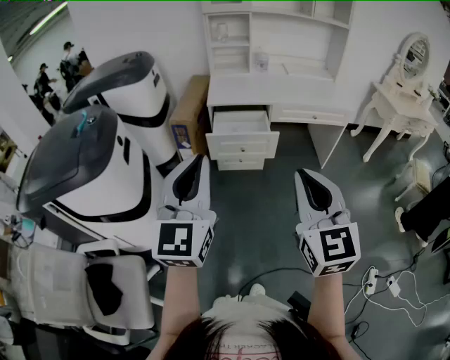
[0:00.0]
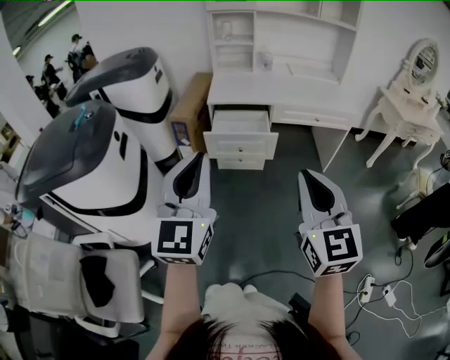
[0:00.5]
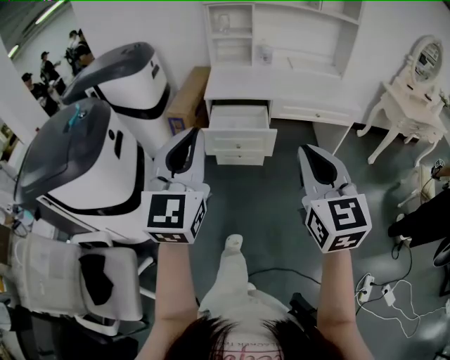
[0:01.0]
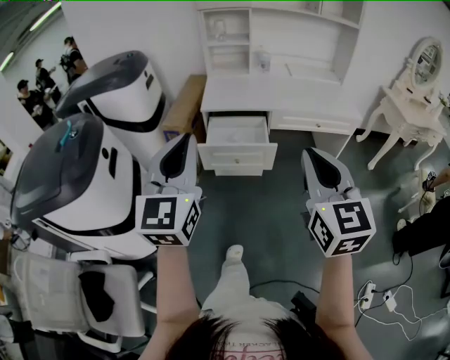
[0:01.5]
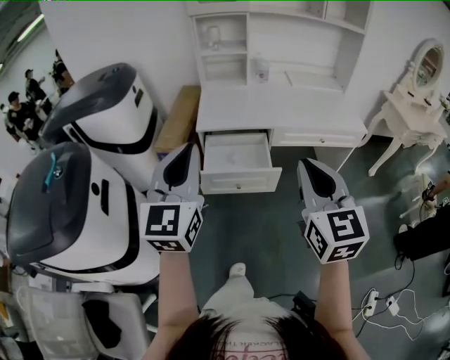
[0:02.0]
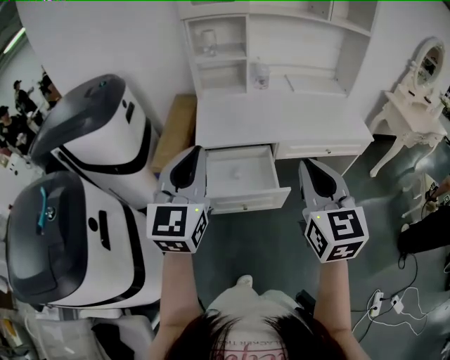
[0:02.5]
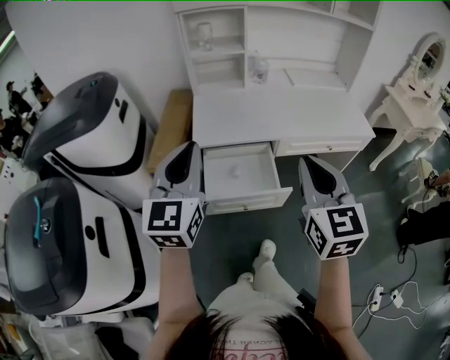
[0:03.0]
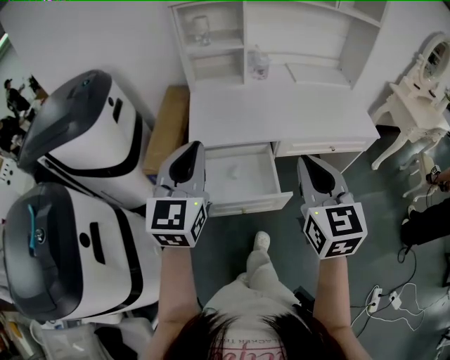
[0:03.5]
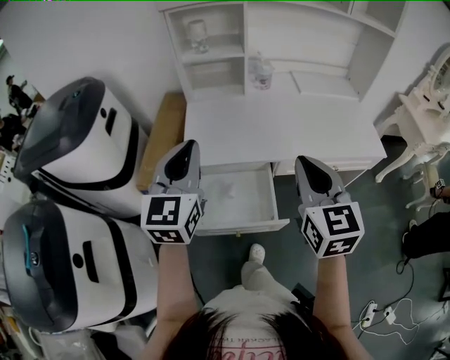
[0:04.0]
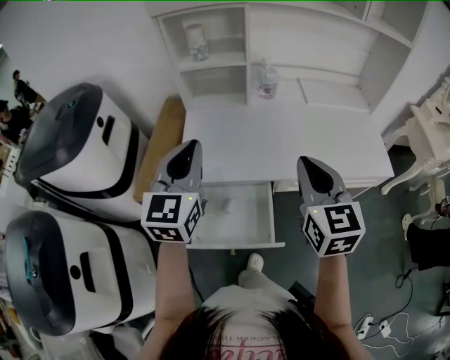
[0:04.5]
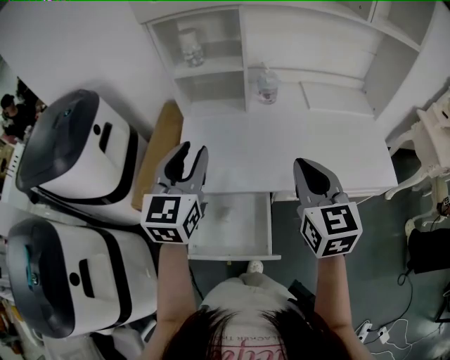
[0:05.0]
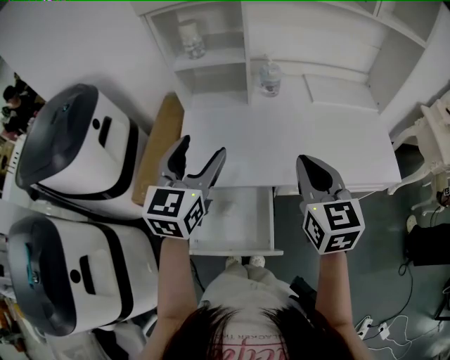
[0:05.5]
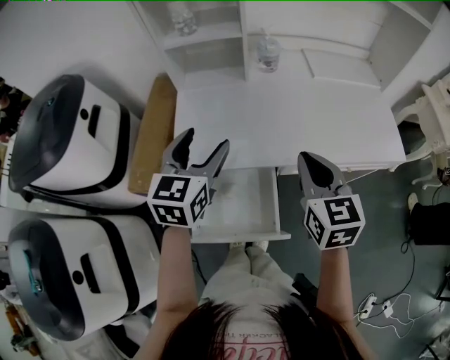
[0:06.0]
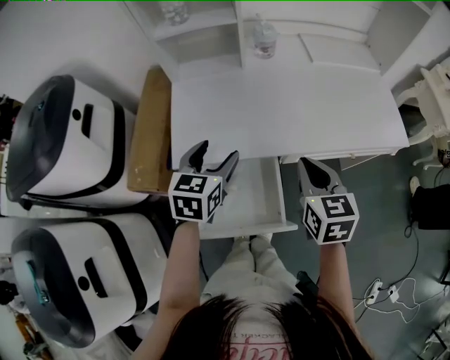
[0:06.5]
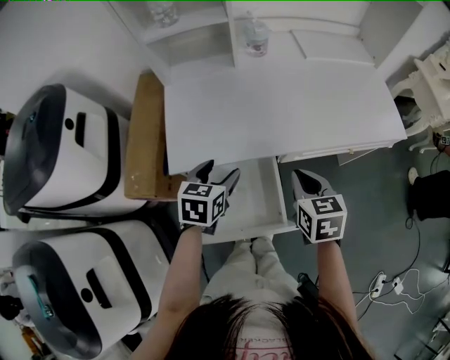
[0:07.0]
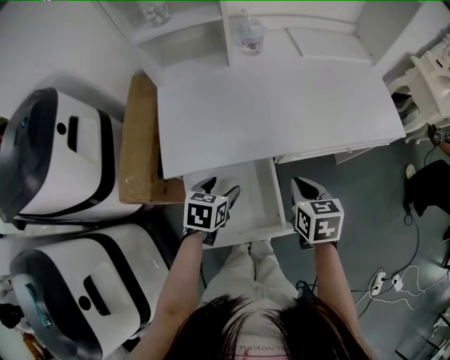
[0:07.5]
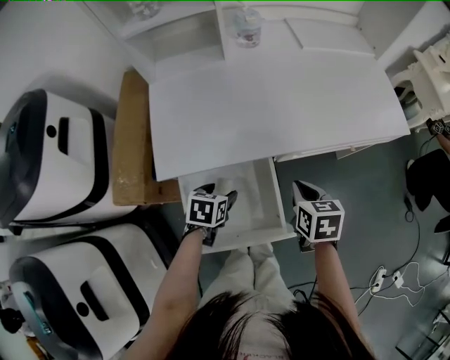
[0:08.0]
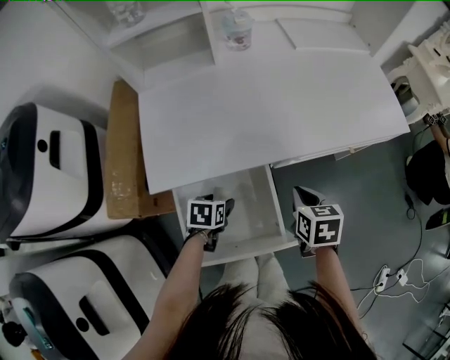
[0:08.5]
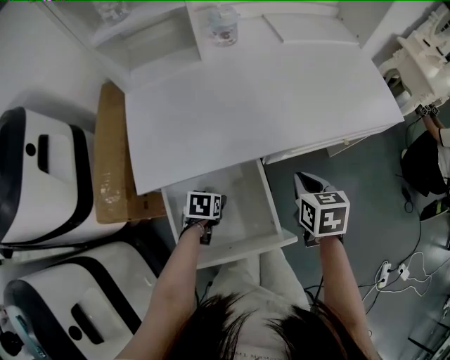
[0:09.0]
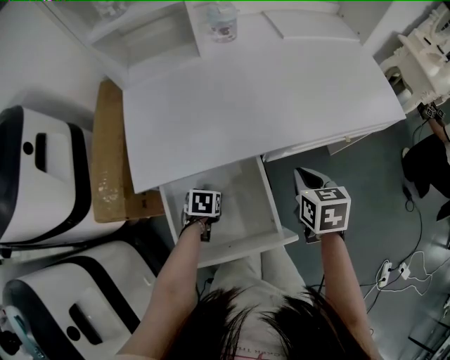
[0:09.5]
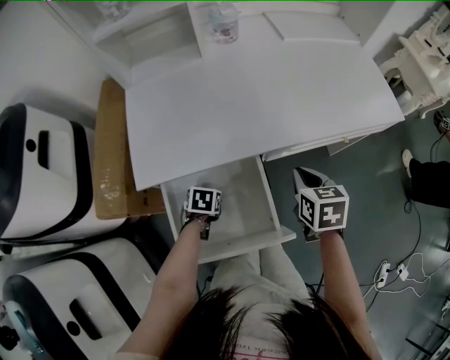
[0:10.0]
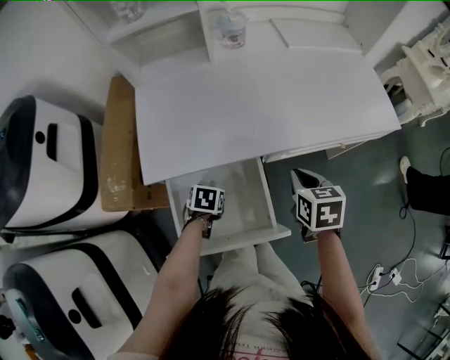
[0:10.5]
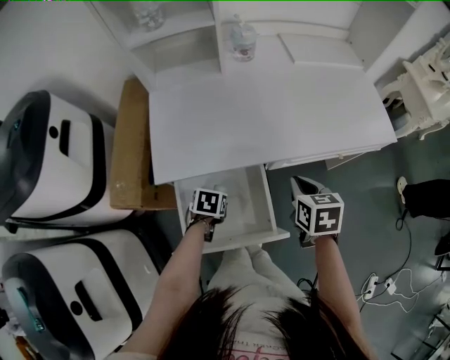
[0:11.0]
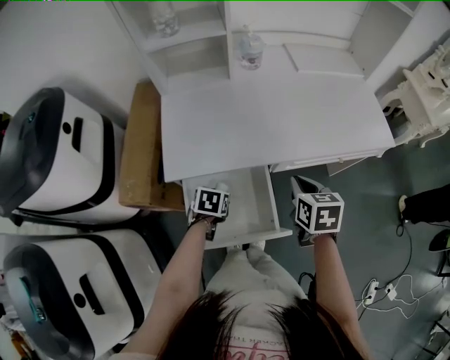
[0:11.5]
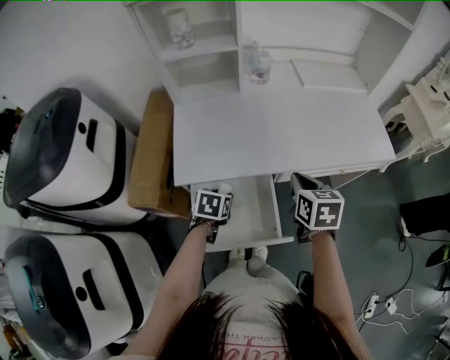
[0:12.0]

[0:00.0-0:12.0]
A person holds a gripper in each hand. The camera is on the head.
0:00.0 to 0:02.0: Both grippers move forward, about 25 cm.
0:02.0 to 0:04.0: Both grippers move forward, approximately 30 cm.
0:04.0 to 0:06.0: The right gripper moves forward and downward, some 15 cm, while the left gripper is displaced forward, downward and to the right by some 15 cm, and opens.
0:06.0 to 0:08.0: Both grippers move downward, roughly 25 cm. The left gripper tips its fingers downward by approximately 40 degrees. Meanwhile the right gripper turns by approximately 30 degrees.
0:08.0 to 0:10.0: The left gripper is displaced downward by some 10 cm, and closes up. The right gripper changes place by some 5 cm.
0:10.0 to 0:12.0: The right gripper shifts some 15 cm upward and to the left. Meanwhile the left gripper moves upward, about 20 cm.

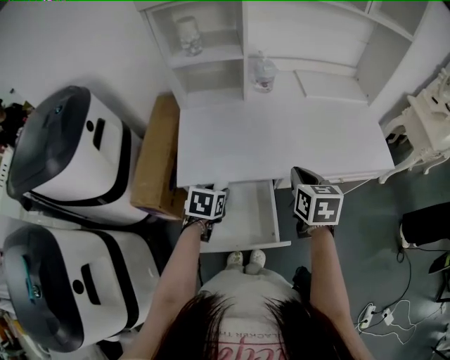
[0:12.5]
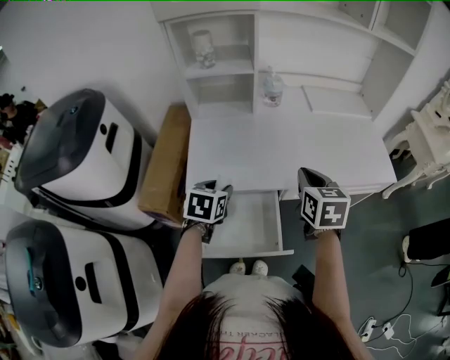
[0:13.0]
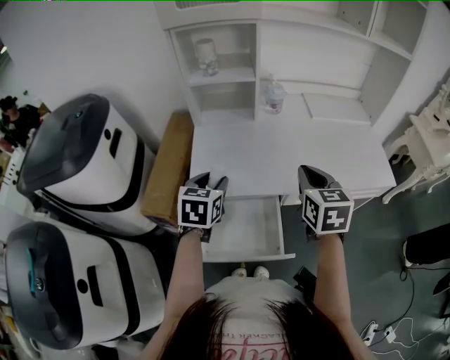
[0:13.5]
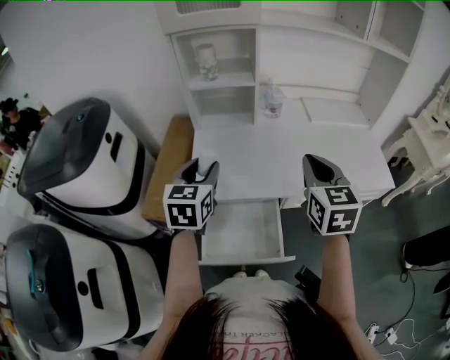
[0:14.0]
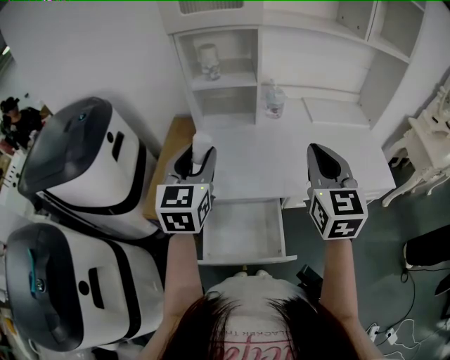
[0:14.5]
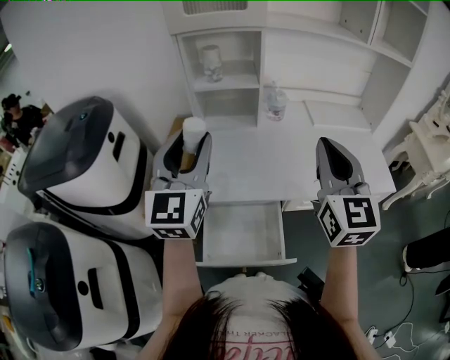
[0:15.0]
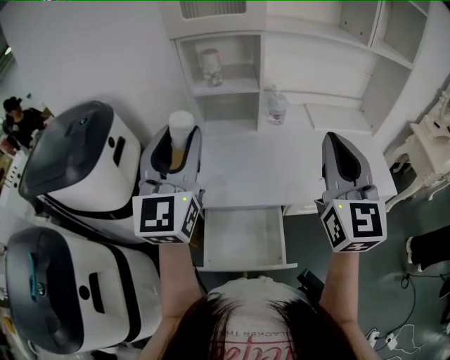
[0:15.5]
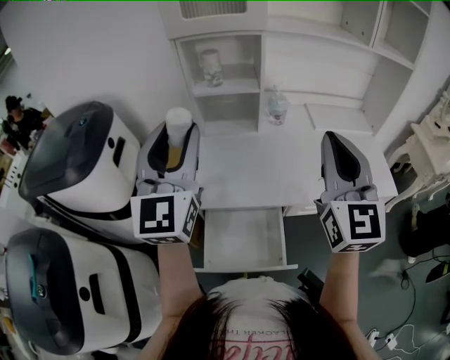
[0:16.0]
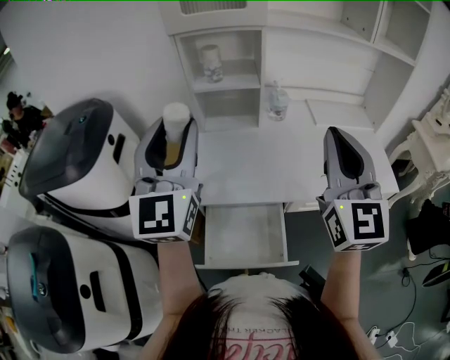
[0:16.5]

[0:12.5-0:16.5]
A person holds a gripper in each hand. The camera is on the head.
0:12.5 to 0:14.5: The two grippers go about 25 cm upward. The left gripper tilts its fingers some 50 degrees upward, while the right gripper rotates approximately 40 degrees.
0:14.5 to 0:16.5: The two grippers go approximately 10 cm upward. The left gripper changes its angle by some 30 degrees.

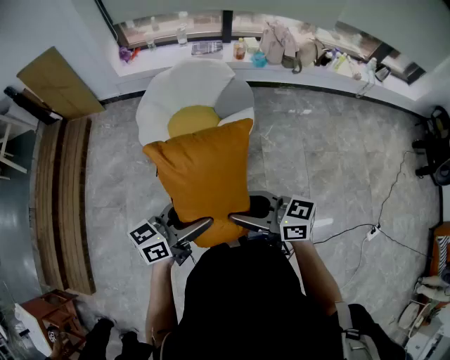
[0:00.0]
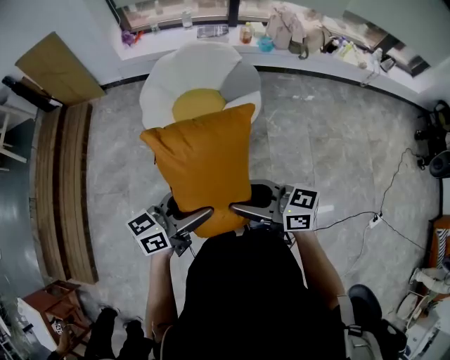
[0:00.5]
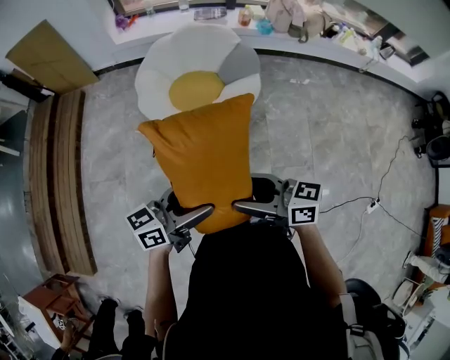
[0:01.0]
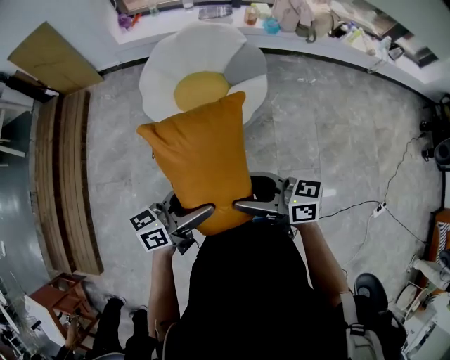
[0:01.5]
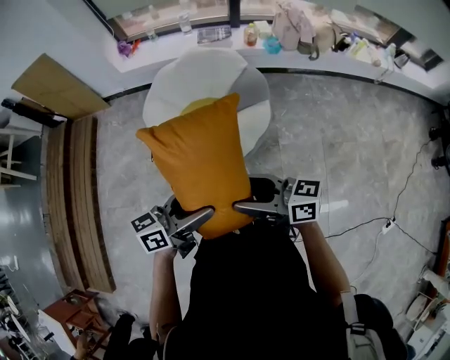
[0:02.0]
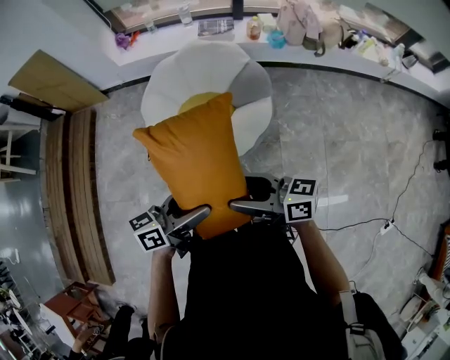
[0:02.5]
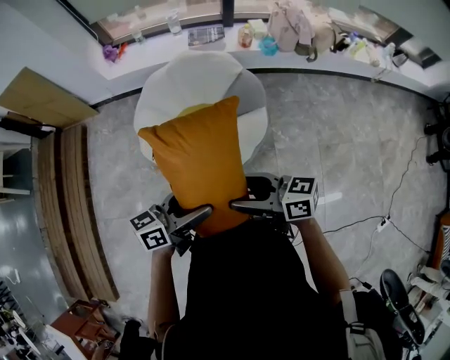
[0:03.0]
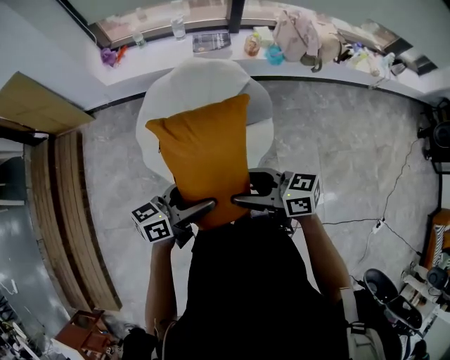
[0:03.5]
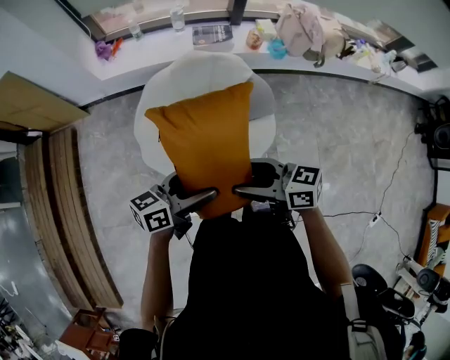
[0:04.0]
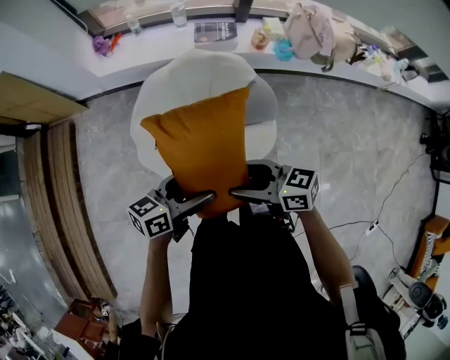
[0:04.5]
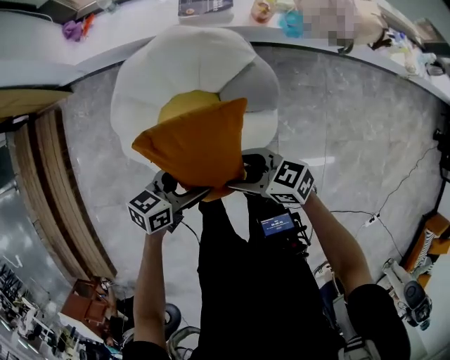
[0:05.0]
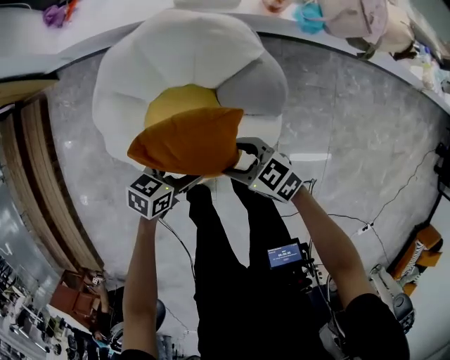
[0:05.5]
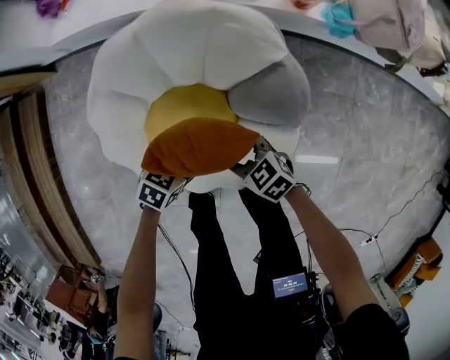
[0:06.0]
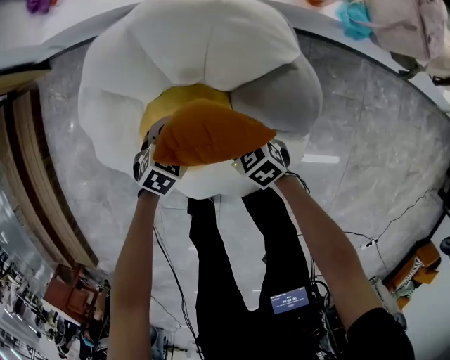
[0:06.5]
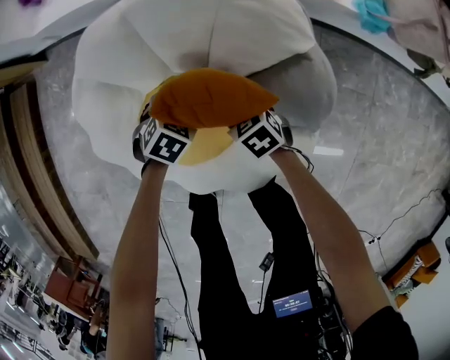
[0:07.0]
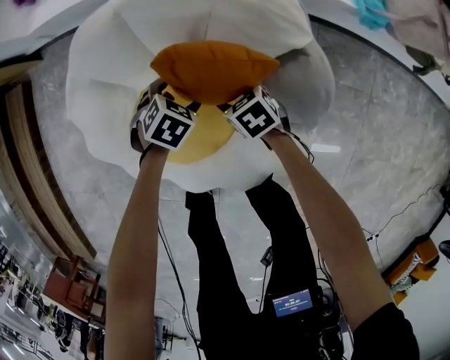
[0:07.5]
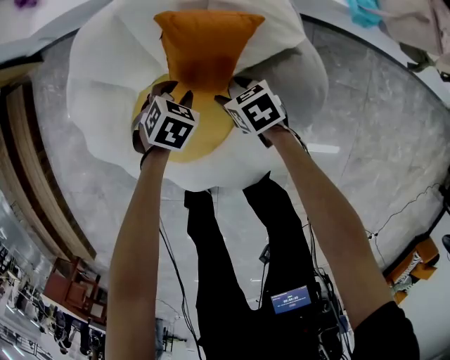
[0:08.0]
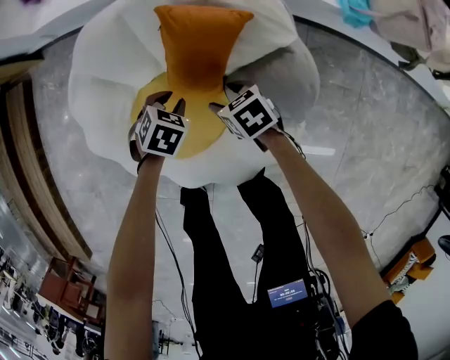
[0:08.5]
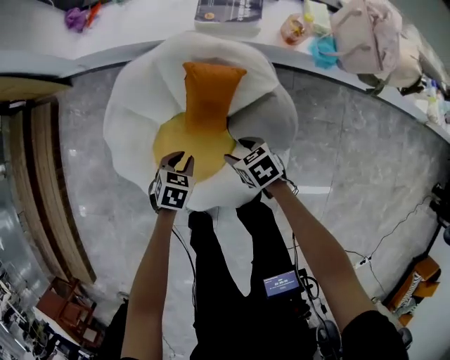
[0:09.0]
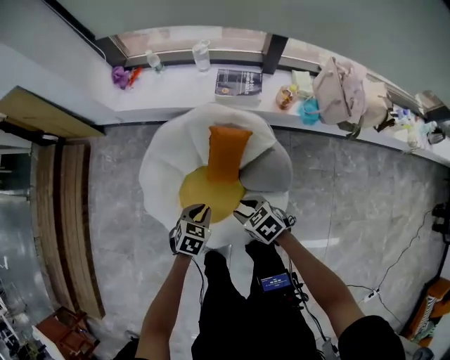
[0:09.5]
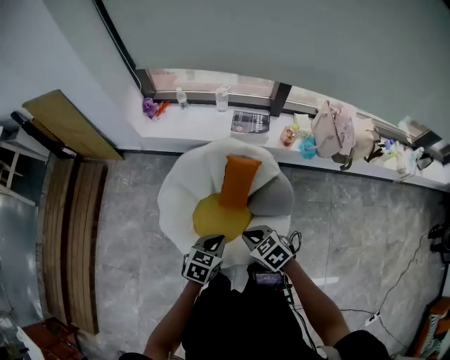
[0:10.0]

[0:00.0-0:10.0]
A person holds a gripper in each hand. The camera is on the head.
0:00.0 to 0:02.0: The left gripper moves about 15 cm; the right gripper ends up roughly 15 cm from where it was.
0:02.0 to 0:04.0: The left gripper shifts by about 30 cm; the right gripper moves roughly 30 cm.
0:04.0 to 0:06.0: The grippers both shift downward by approximately 50 cm. The right gripper angles its fingers downward, by approximately 30 degrees, while the left gripper angles its fingers downward, by about 50 degrees.
0:06.0 to 0:08.0: The right gripper is displaced downward by approximately 15 cm, and rotates about 20 degrees. The left gripper shifts by roughly 20 cm, rotates roughly 30 degrees, and closes its fingers.
0:08.0 to 0:10.0: The left gripper travels upward and backward by roughly 50 cm, and turns by some 30 degrees. The right gripper shifts about 50 cm upward, turns by roughly 20 degrees, and closes up.
